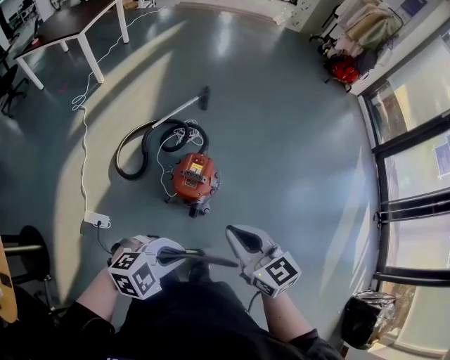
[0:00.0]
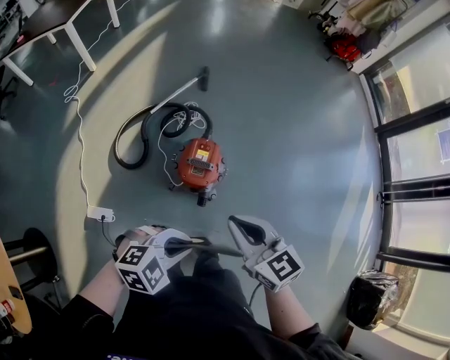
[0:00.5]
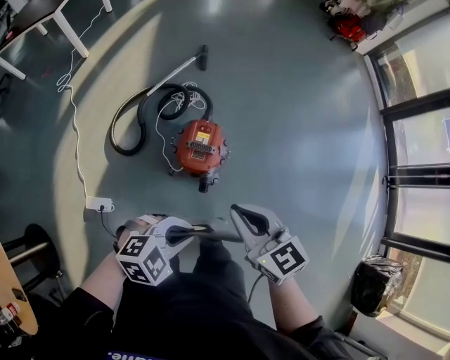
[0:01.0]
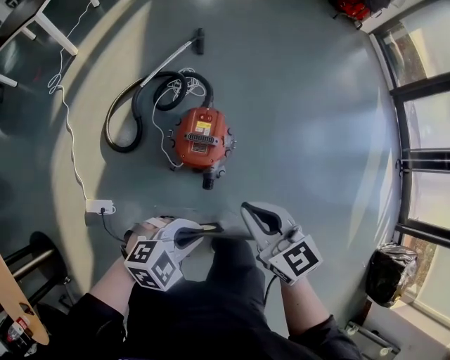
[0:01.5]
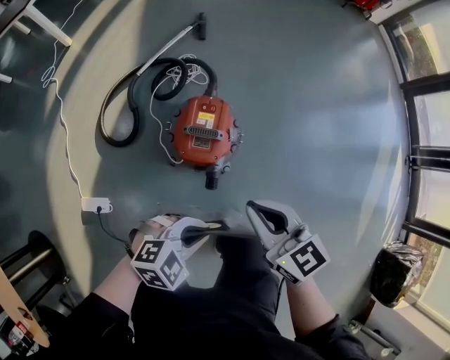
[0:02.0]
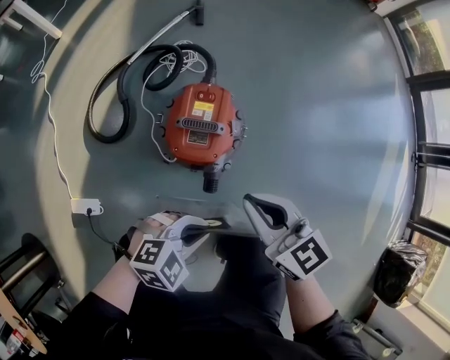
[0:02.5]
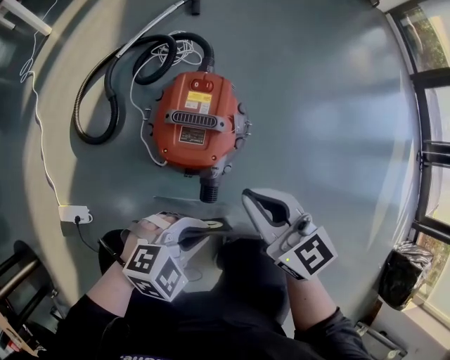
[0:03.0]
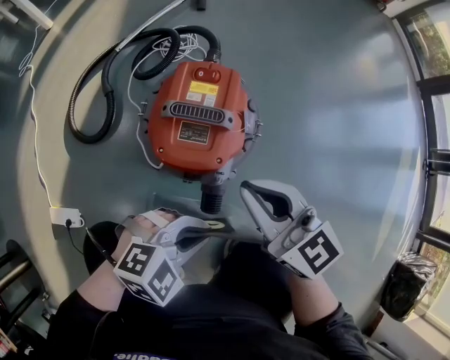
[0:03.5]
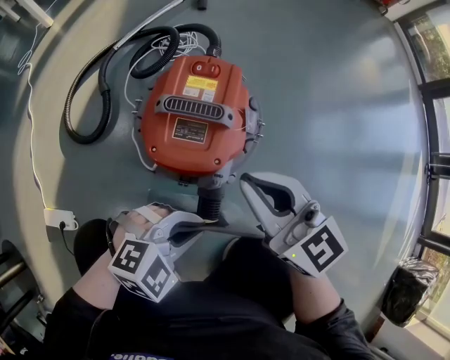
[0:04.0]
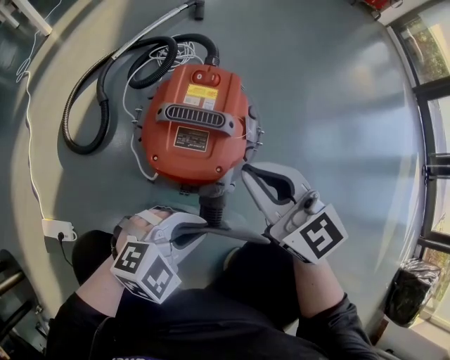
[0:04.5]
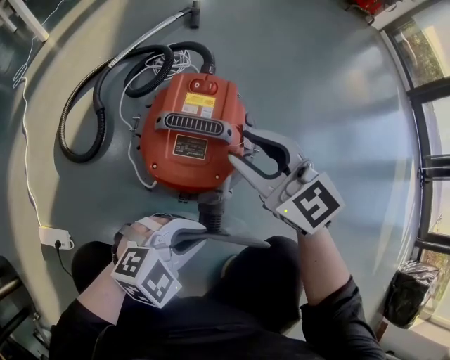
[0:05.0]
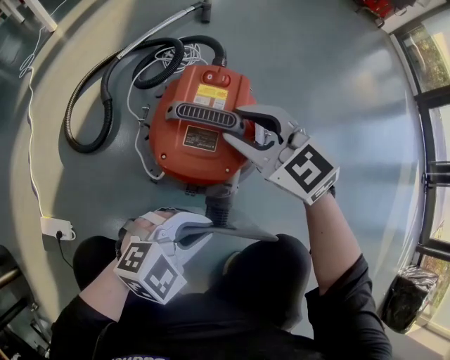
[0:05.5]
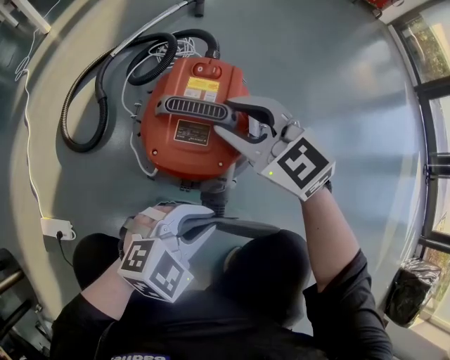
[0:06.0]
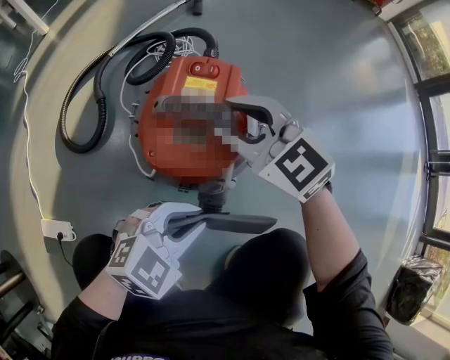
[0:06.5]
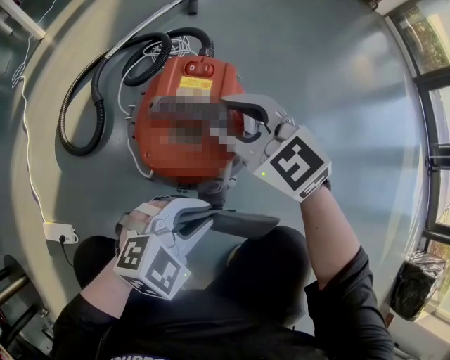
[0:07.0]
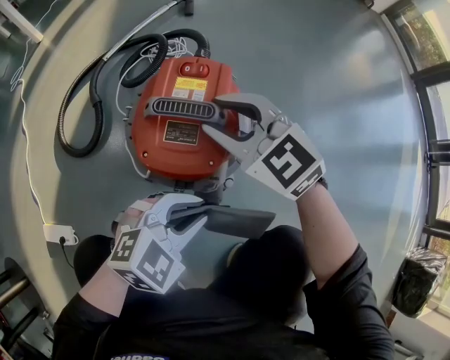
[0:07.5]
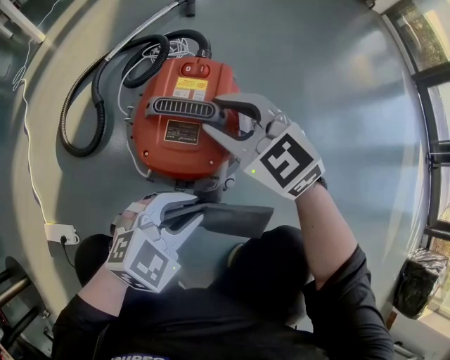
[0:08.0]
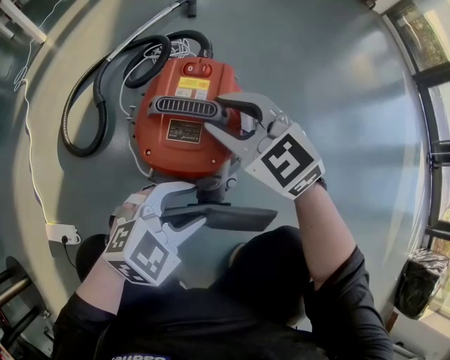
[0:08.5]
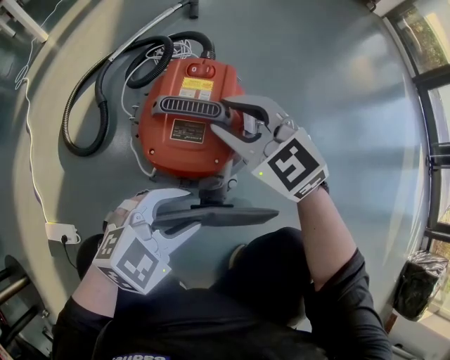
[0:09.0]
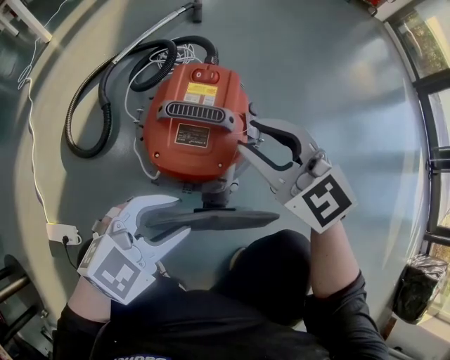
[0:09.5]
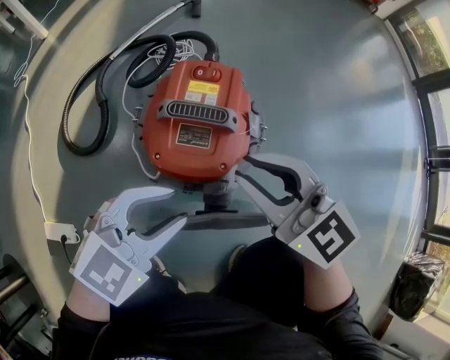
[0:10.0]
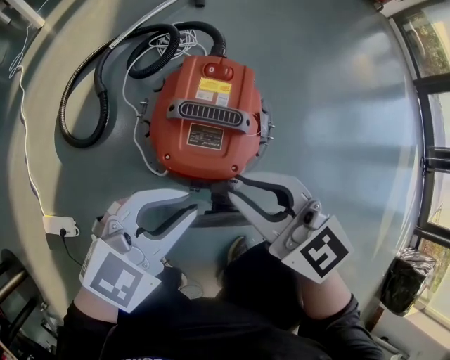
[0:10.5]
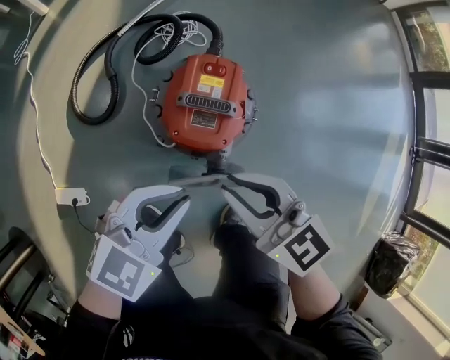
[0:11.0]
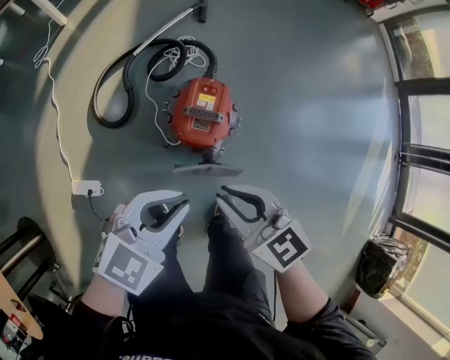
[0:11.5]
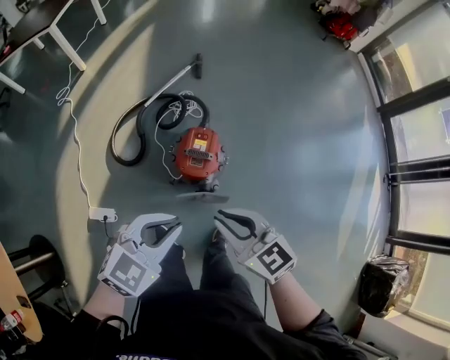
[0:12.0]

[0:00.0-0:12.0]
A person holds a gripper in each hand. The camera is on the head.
0:00.0 to 0:02.0: Both grippers travel together downward, some 20 cm.
0:02.0 to 0:04.0: Both grippers travel together downward, roughly 25 cm.
0:04.0 to 0:06.0: The right gripper shifts by some 10 cm, changes its angle by some 30 degrees, and opens.
0:06.0 to 0:08.0: The grippers make only small movements.
0:08.0 to 0:10.0: The right gripper shifts about 10 cm backward and upward. The left gripper moves upward and to the left, roughly 10 cm.
0:10.0 to 0:12.0: Both grippers travel together upward, some 40 cm. The left gripper closes up.

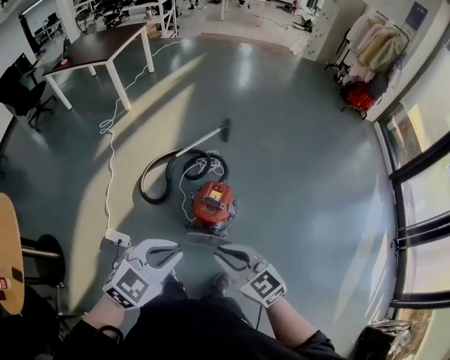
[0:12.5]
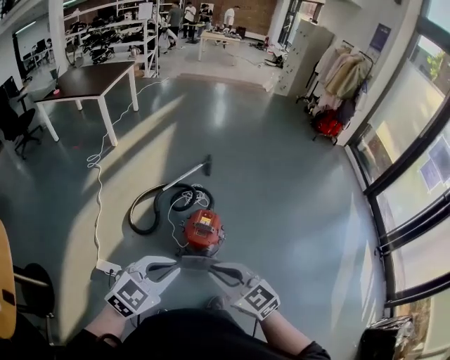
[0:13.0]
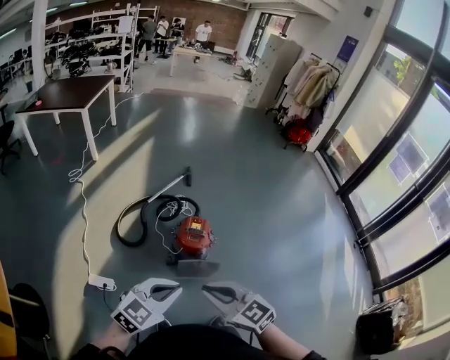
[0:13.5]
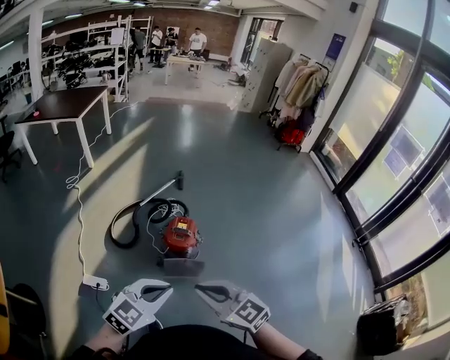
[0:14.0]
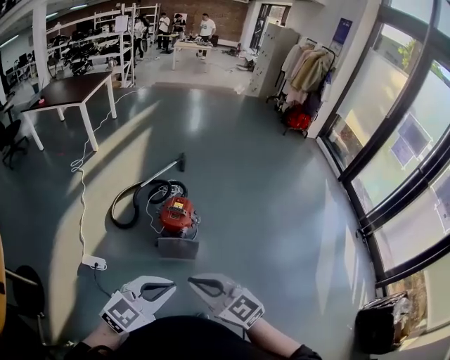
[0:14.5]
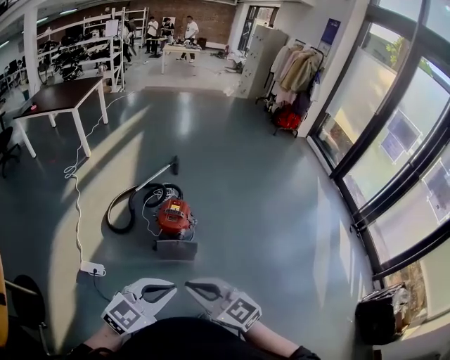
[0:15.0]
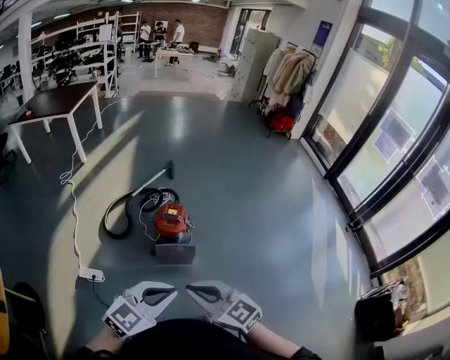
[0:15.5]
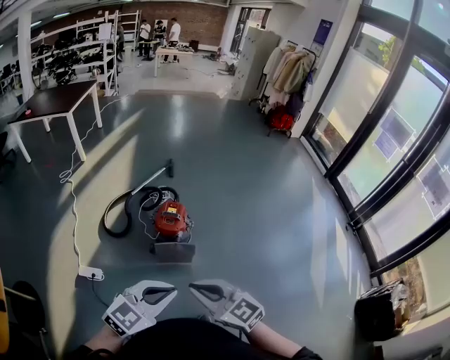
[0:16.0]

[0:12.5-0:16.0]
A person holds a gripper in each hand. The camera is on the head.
0:12.5 to 0:14.5: The two grippers go about 25 cm backward.
0:14.5 to 0:16.0: The grippers make only small movements.

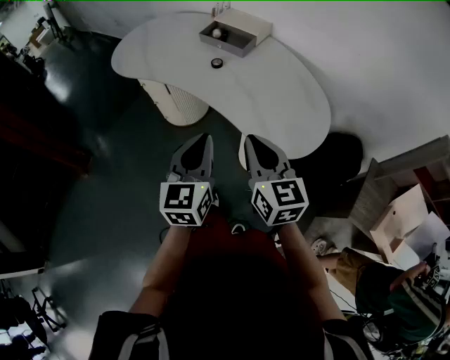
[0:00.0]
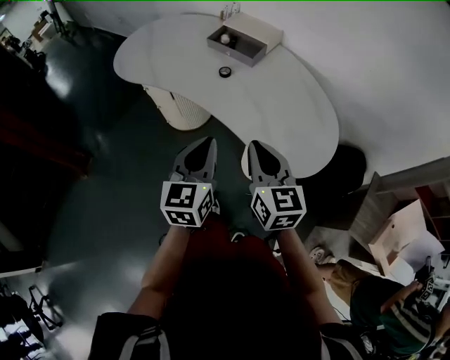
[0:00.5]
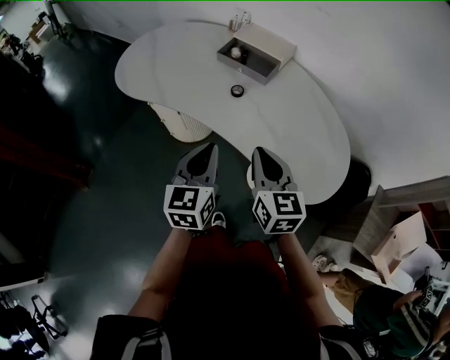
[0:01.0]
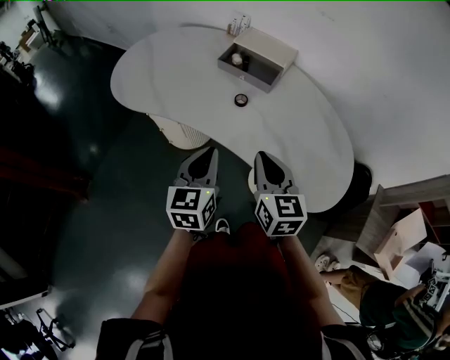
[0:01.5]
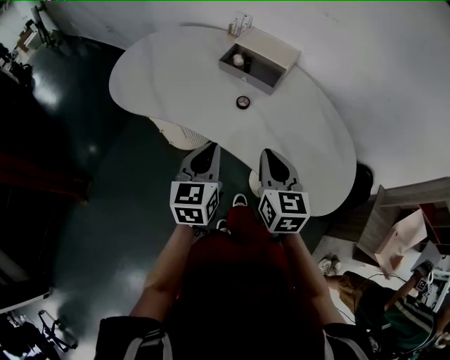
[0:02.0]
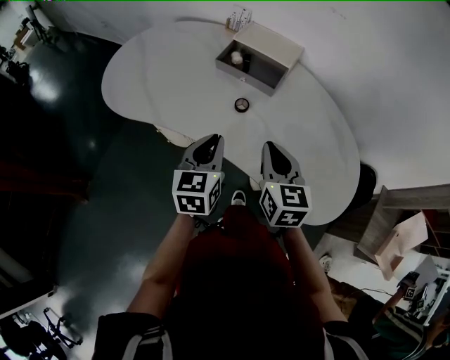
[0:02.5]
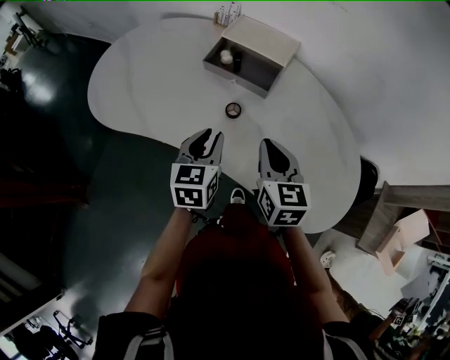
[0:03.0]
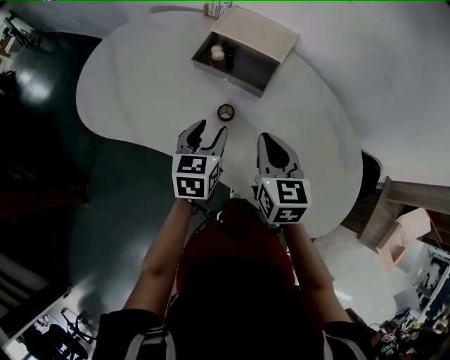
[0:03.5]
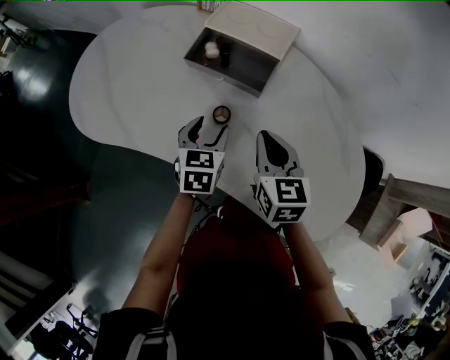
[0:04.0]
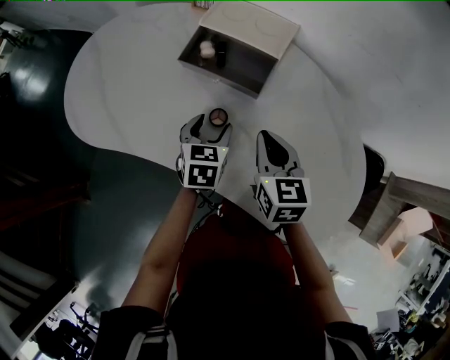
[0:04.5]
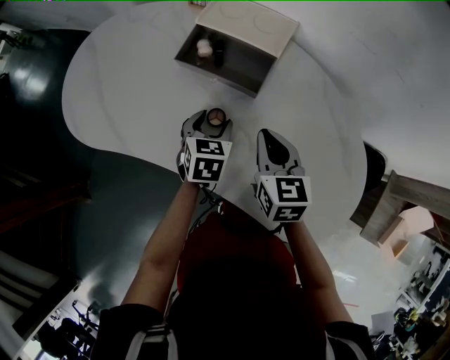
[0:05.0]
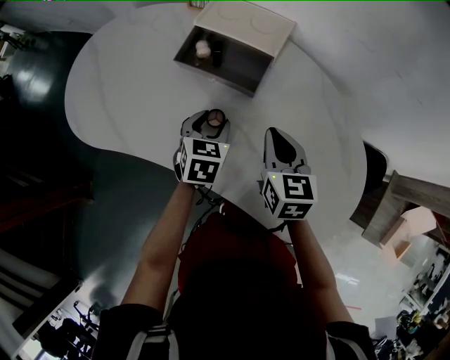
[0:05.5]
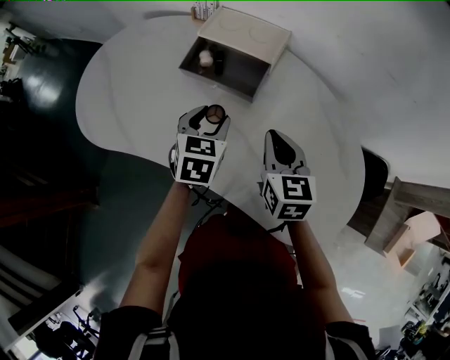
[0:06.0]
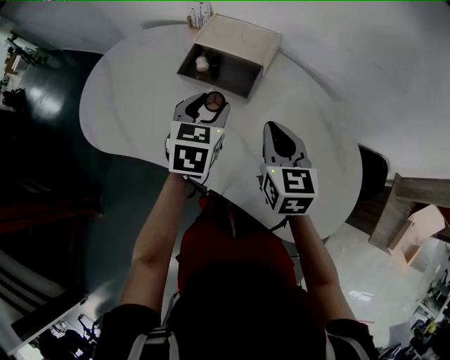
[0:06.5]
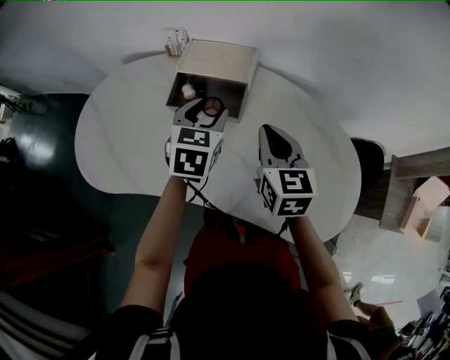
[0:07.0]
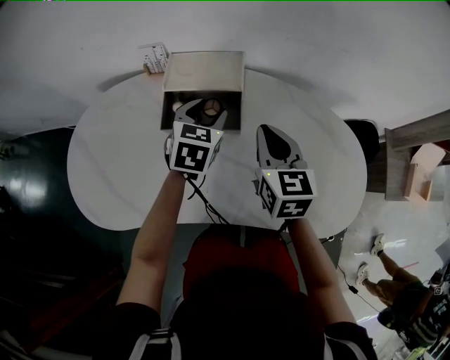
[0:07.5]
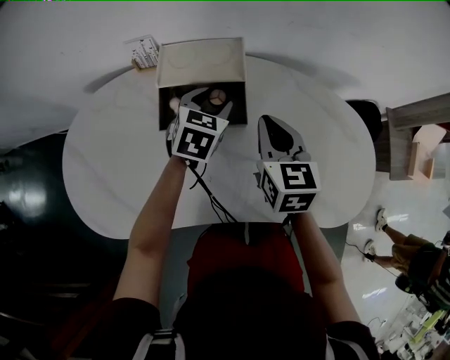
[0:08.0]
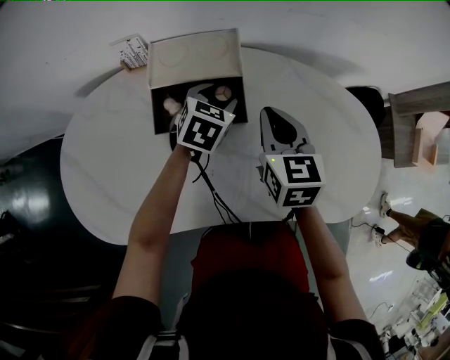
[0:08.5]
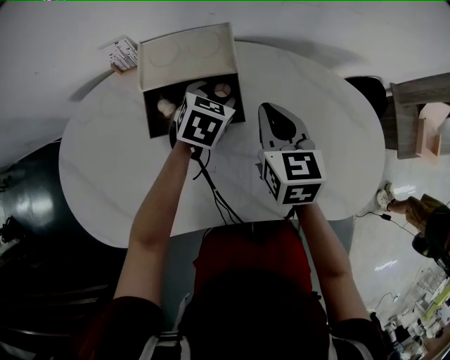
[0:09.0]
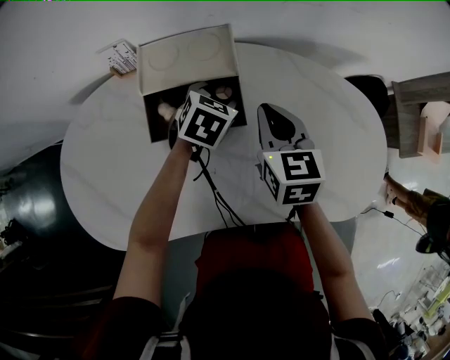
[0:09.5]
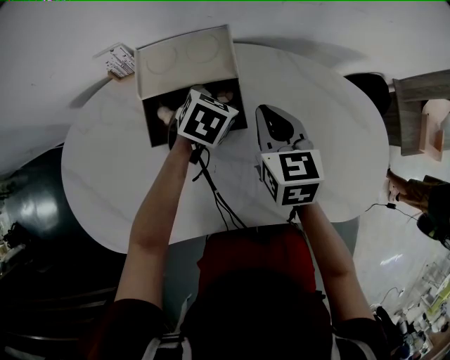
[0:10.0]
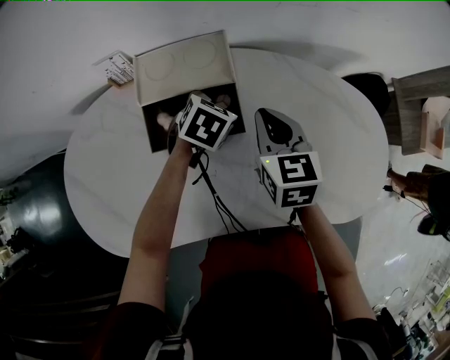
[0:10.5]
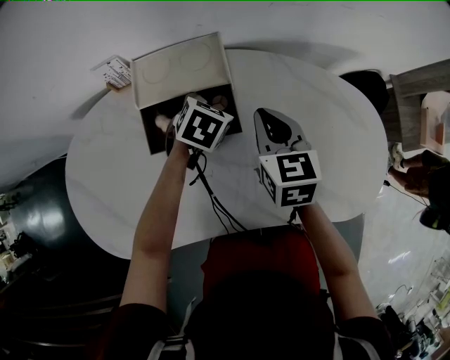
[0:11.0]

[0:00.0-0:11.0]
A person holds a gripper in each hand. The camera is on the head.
0:00.0 to 0:02.0: The left gripper travels forward and to the left by some 25 cm. Meanwhile the right gripper moves forward, roughly 20 cm.
0:02.0 to 0:03.5: The right gripper goes roughly 15 cm forward, while the left gripper heads forward and downward, covering some 20 cm, and opens.
0:03.5 to 0:05.5: The left gripper shifts about 5 cm downward and forward; the right gripper shifts by some 5 cm.
0:05.5 to 0:07.5: The left gripper goes roughly 15 cm forward and upward, and rotates roughly 30 degrees. Meanwhile the right gripper heads upward, covering about 10 cm, and changes its angle by roughly 20 degrees.
0:07.5 to 0:09.0: The left gripper moves downward, roughly 10 cm, and rotates about 20 degrees. Meanwhile the right gripper shifts approximately 5 cm downward.
0:09.0 to 0:11.0: The grippers make only small movements.
